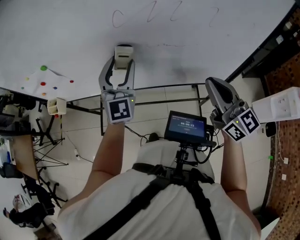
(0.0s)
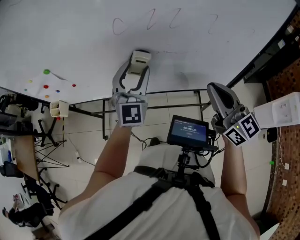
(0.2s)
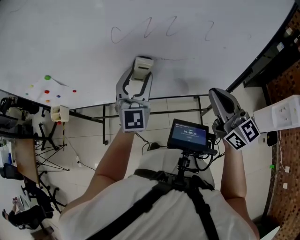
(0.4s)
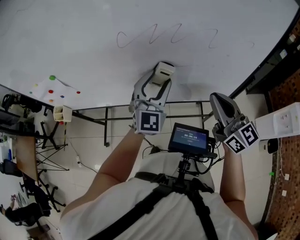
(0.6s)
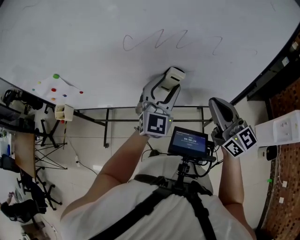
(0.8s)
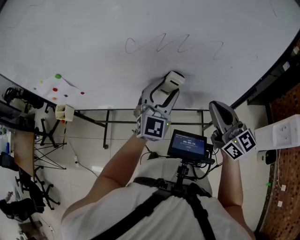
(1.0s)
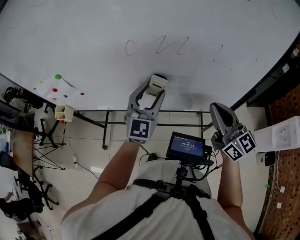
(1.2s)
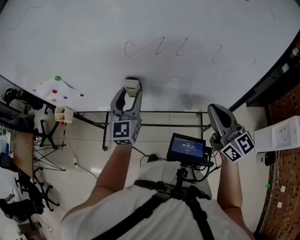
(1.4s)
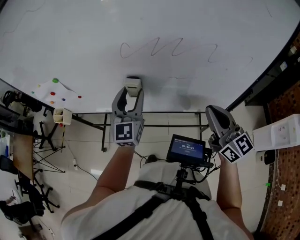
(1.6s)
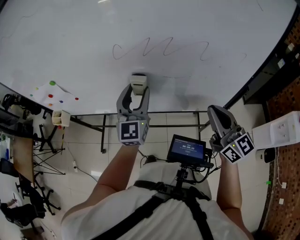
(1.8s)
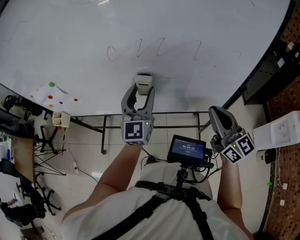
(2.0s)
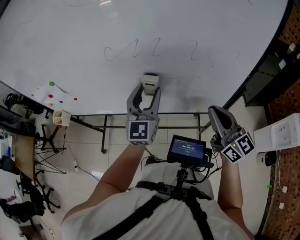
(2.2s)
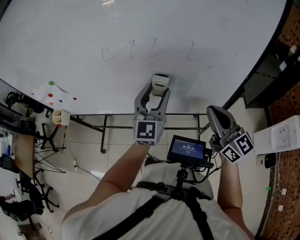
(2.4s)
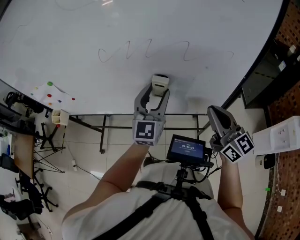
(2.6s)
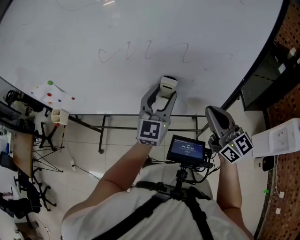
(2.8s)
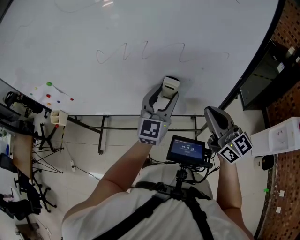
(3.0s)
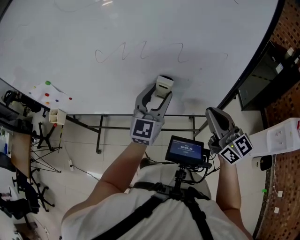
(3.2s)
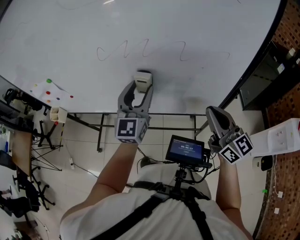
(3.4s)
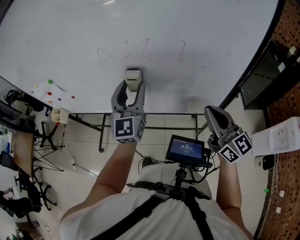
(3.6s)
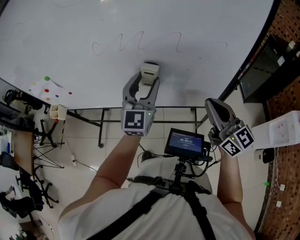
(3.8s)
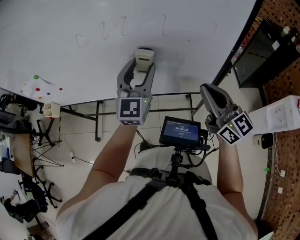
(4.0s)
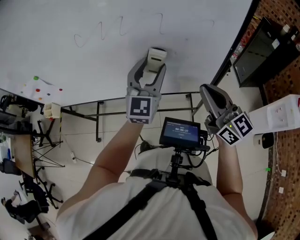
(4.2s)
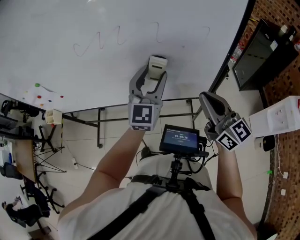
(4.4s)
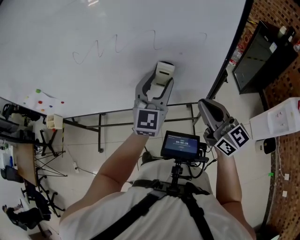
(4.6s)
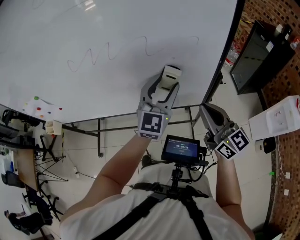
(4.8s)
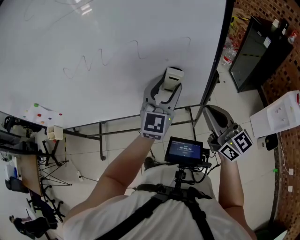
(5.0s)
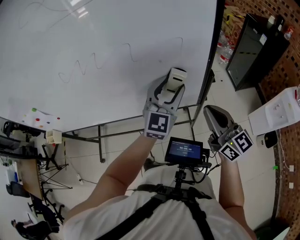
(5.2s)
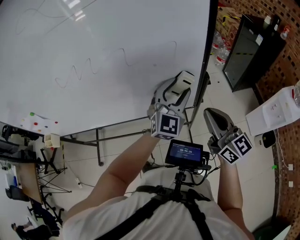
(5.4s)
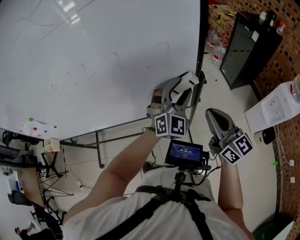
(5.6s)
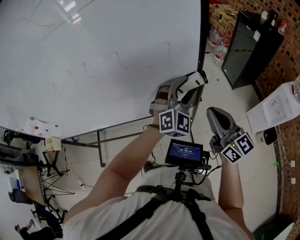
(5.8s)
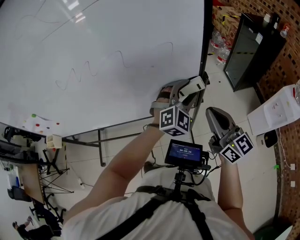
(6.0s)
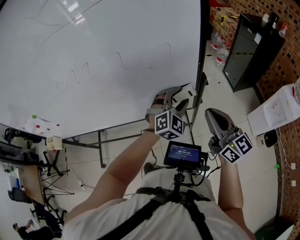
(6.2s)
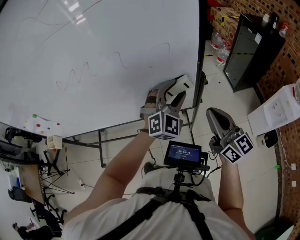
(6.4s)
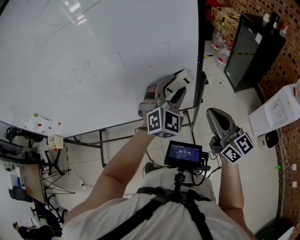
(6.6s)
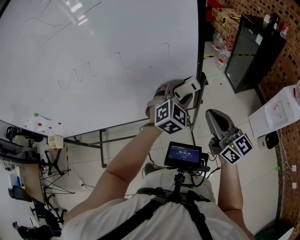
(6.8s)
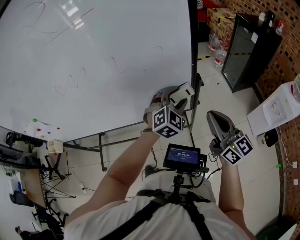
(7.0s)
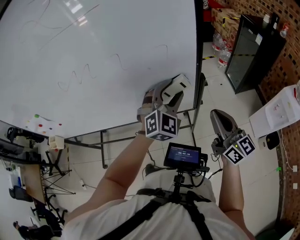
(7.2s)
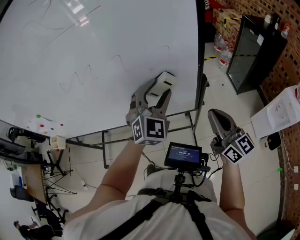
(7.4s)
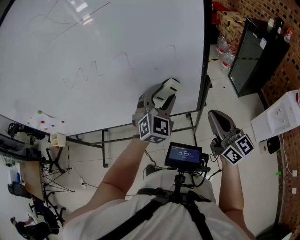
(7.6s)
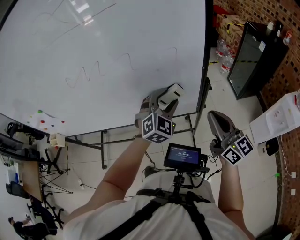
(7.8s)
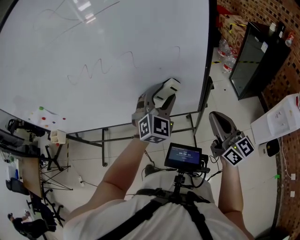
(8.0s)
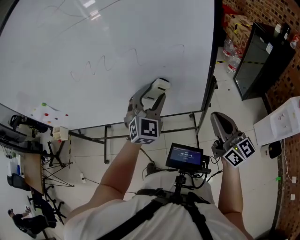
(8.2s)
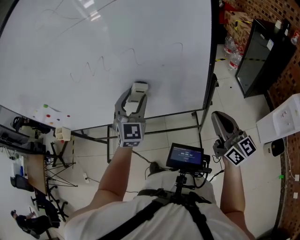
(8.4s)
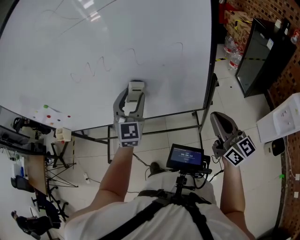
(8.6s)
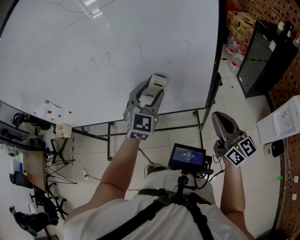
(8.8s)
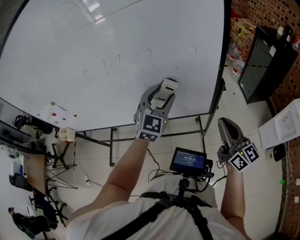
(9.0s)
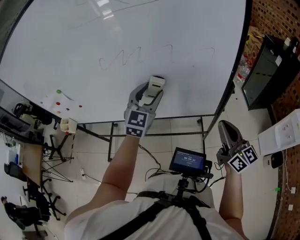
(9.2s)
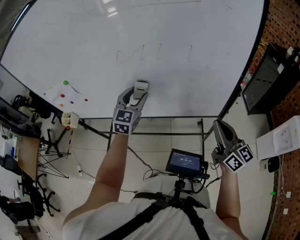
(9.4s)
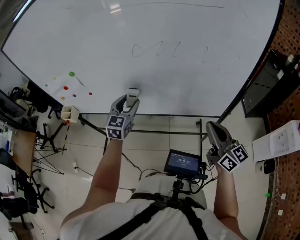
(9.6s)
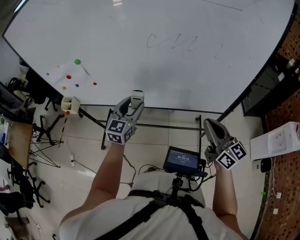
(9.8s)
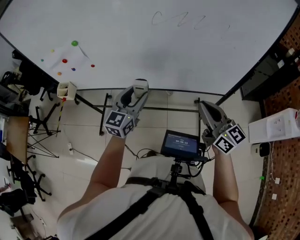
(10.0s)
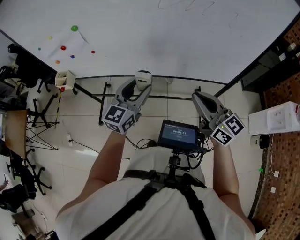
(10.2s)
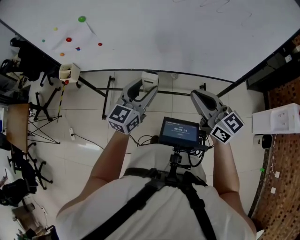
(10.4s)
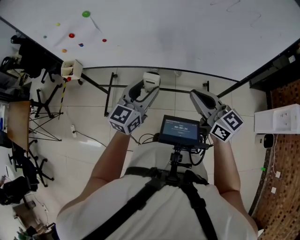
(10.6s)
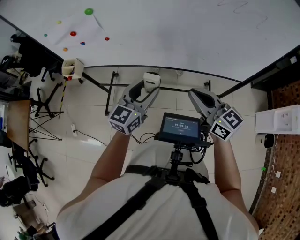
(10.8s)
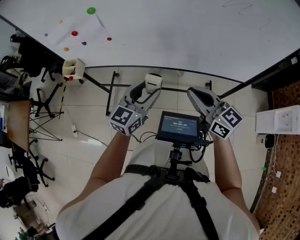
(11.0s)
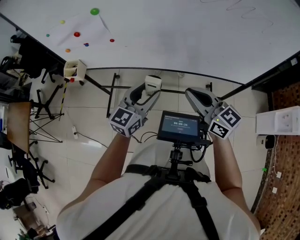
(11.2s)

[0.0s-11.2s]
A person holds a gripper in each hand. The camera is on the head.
0.0s to 1.6s: The left gripper goes to the right and returns, roughly 15 cm each way.
1.6s to 3.2s: The left gripper heads to the right, covering some 20 cm. Meanwhile the right gripper shifts approximately 10 cm to the right.
3.2s to 4.8s: The right gripper travels to the right by about 5 cm. The left gripper heads to the right, covering approximately 10 cm.
4.8s to 6.4s: Both grippers move to the right, roughly 10 cm. The left gripper changes its angle by some 30 degrees.
6.4s to 8.0s: The left gripper is displaced to the left by about 5 cm.
8.0s to 9.6s: The left gripper goes left and right, approximately 40 cm each way, reversing 2 times, and swivels about 40 degrees. Meanwhile the right gripper is displaced to the left by some 20 cm.
9.6s to 11.2s: The right gripper moves to the left, some 30 cm, and changes its angle by about 20 degrees. Meanwhile the left gripper shifts about 20 cm to the left, backward and downward, and changes its angle by approximately 30 degrees.

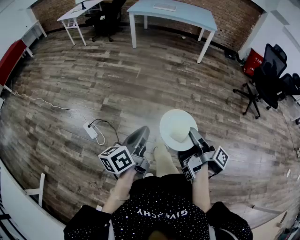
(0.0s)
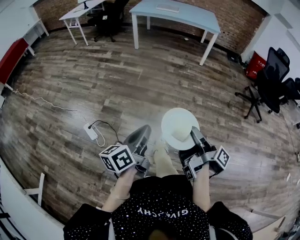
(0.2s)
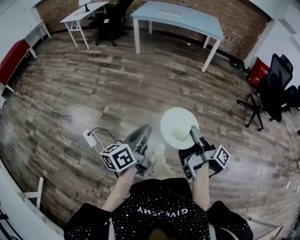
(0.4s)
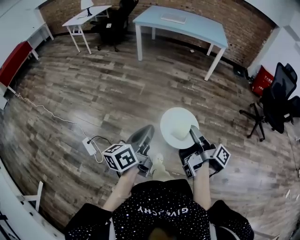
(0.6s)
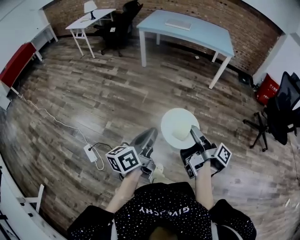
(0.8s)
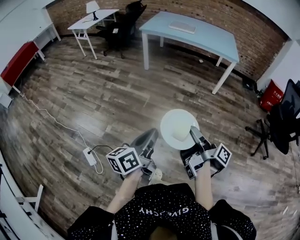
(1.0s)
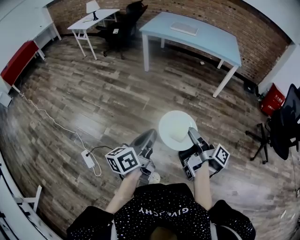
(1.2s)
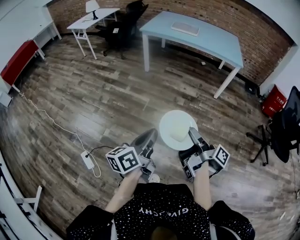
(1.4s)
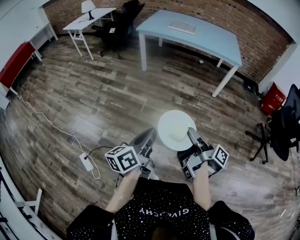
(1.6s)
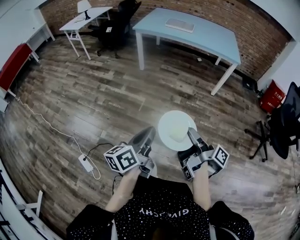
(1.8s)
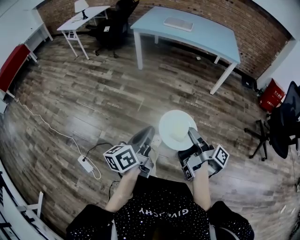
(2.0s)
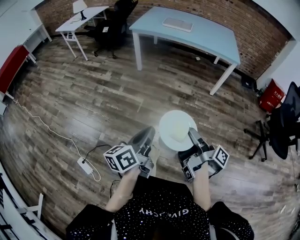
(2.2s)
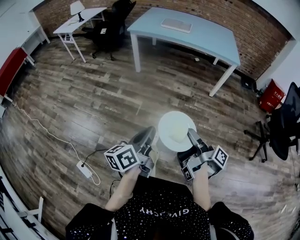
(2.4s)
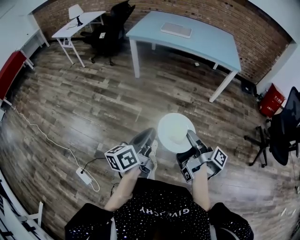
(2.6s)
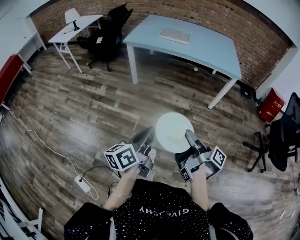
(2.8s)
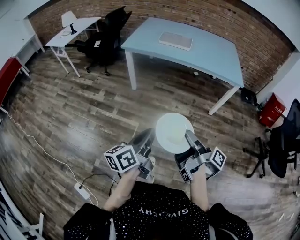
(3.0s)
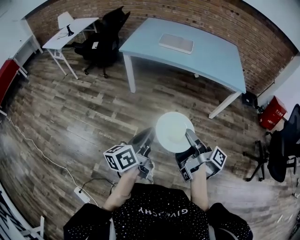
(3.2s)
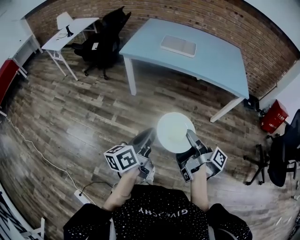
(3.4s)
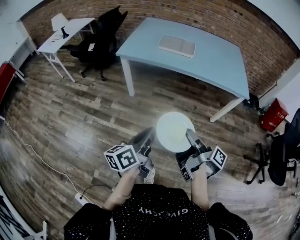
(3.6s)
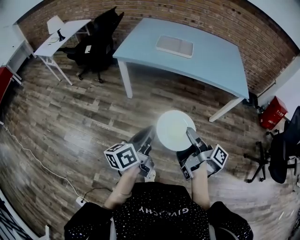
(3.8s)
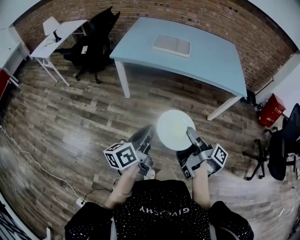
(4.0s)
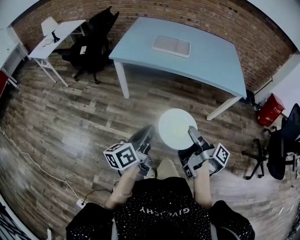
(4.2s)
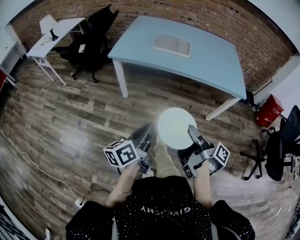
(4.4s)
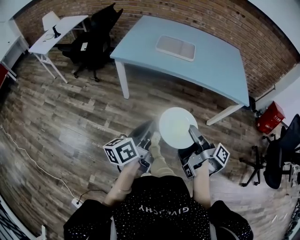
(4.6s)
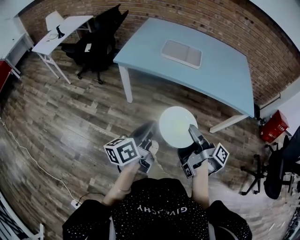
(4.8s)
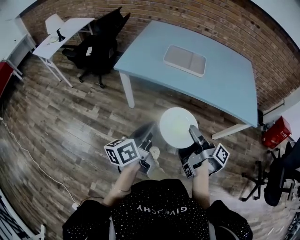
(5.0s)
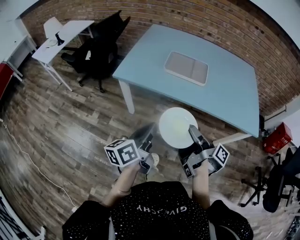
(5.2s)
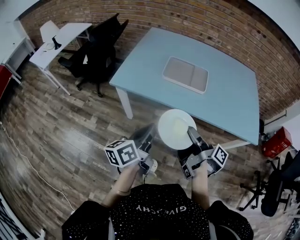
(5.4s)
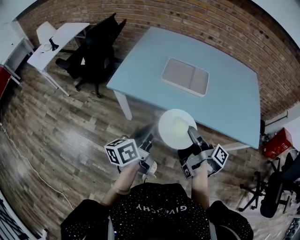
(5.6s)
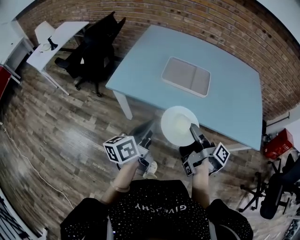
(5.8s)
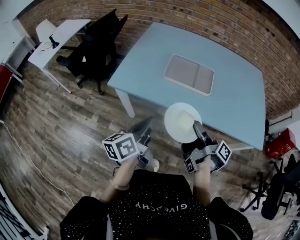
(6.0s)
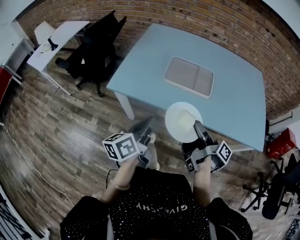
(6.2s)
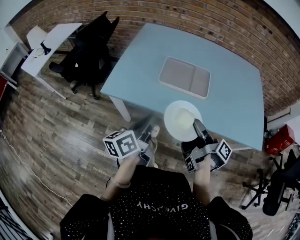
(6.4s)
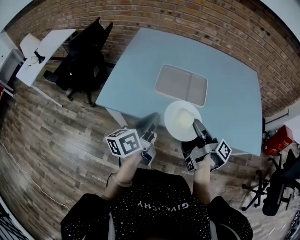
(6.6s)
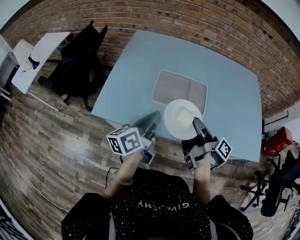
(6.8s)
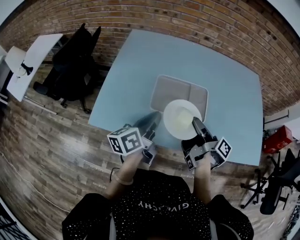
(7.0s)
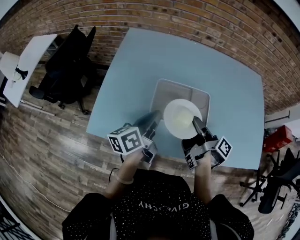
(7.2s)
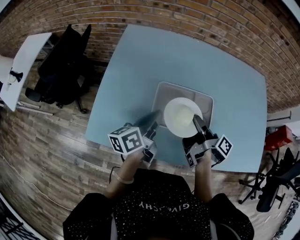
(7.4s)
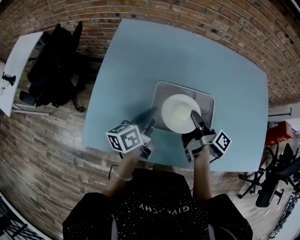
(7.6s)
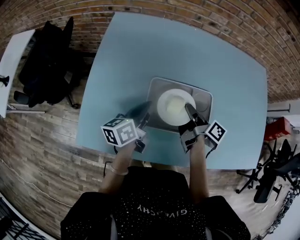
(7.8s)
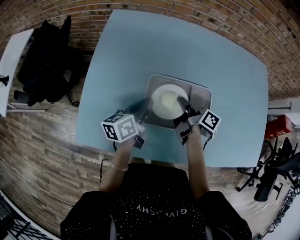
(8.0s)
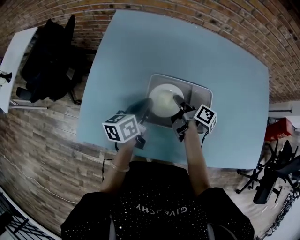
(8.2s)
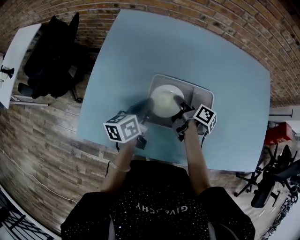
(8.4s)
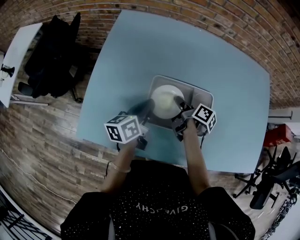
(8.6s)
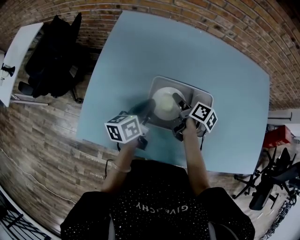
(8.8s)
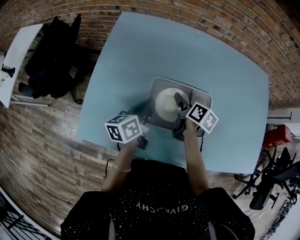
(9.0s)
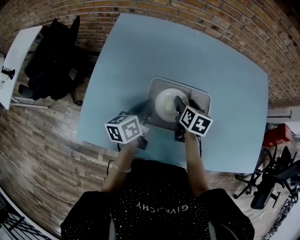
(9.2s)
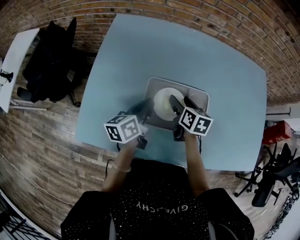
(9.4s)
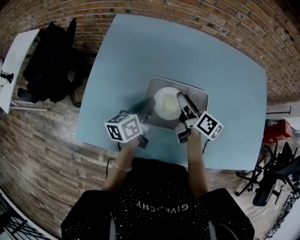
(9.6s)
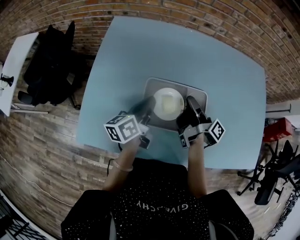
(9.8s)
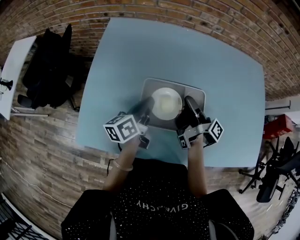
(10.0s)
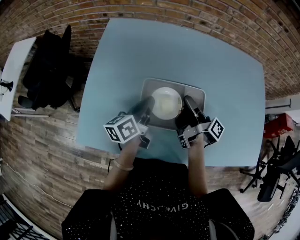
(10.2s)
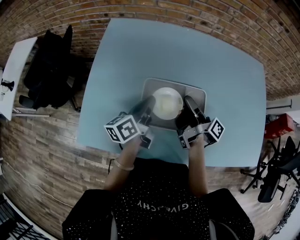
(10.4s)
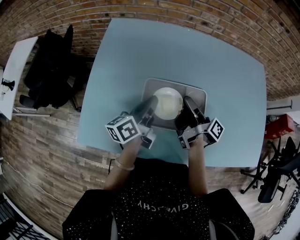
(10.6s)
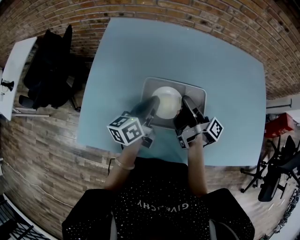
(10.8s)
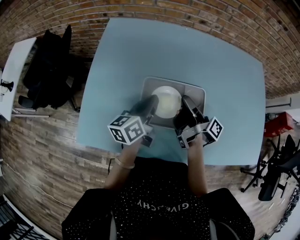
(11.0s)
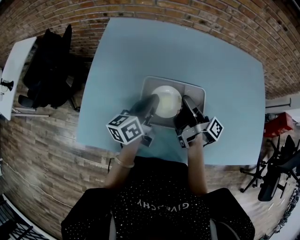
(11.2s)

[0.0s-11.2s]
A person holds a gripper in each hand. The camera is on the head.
0.0s to 1.6s: The left gripper changes place by some 50 cm.
1.6s to 3.2s: The left gripper moves roughly 40 cm.
3.2s to 4.8s: The left gripper shifts by some 25 cm.
4.8s to 6.4s: The left gripper shifts by roughly 35 cm.
6.4s to 8.0s: The left gripper moves about 40 cm.

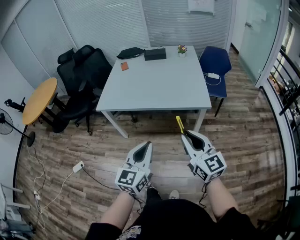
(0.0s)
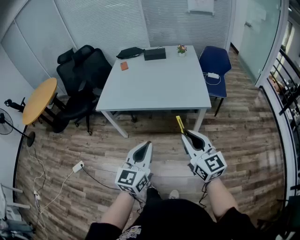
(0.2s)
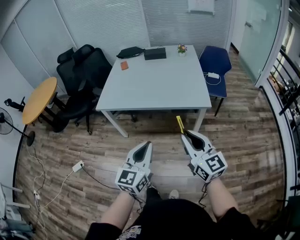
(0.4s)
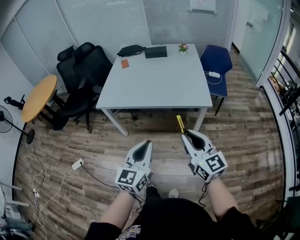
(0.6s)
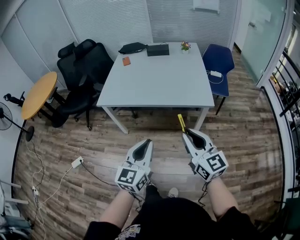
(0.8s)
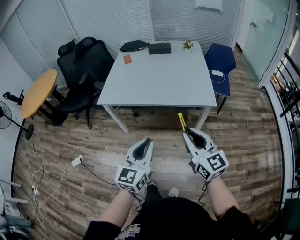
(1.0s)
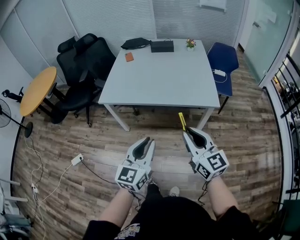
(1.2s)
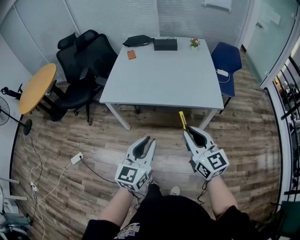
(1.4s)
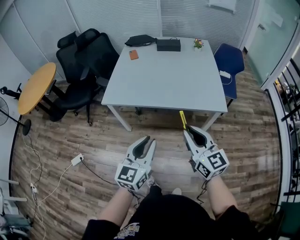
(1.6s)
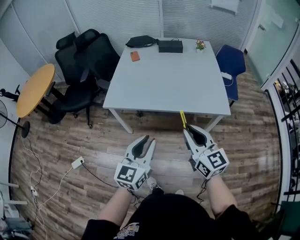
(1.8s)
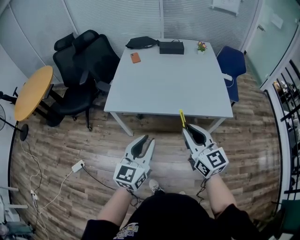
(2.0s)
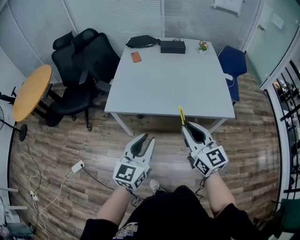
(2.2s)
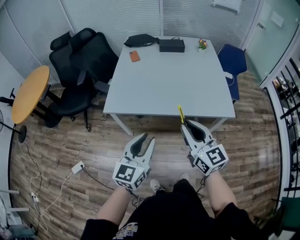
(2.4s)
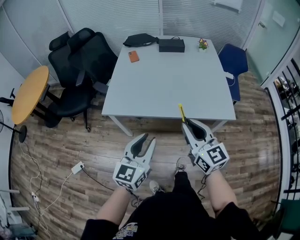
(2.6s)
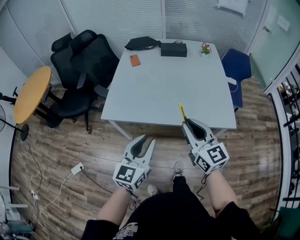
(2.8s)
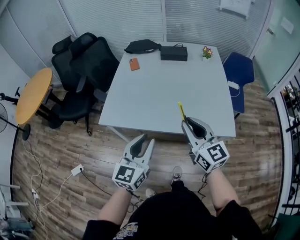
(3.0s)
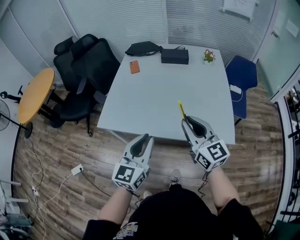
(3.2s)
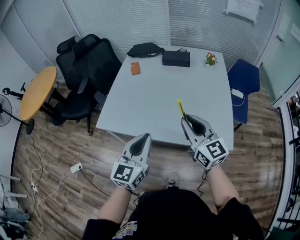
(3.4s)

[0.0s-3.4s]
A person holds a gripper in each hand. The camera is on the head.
0.0s to 1.6s: Both grippers travel together to the left and forward, about 15 cm.
1.6s to 3.4s: The grippers both shift forward by some 25 cm.
